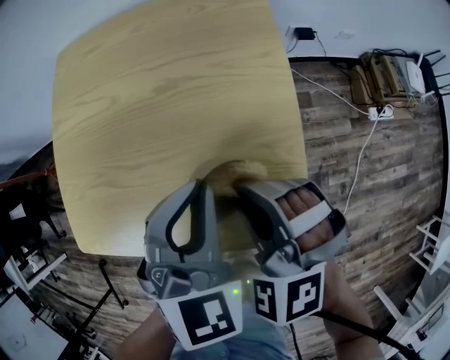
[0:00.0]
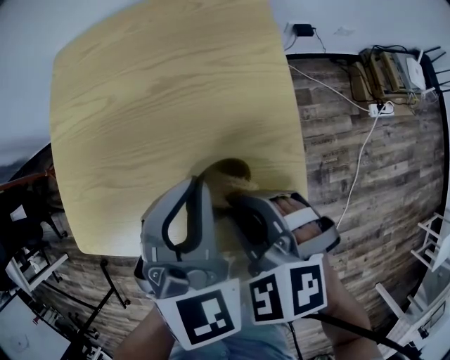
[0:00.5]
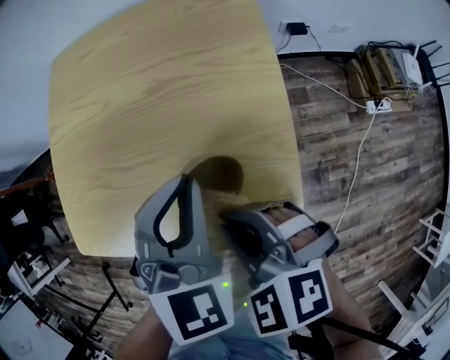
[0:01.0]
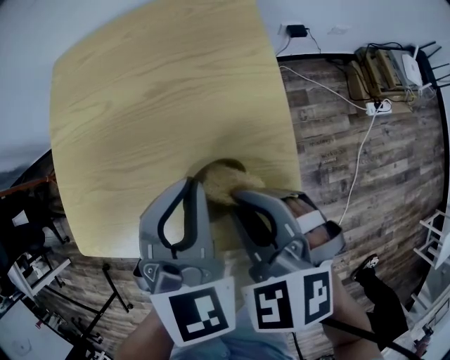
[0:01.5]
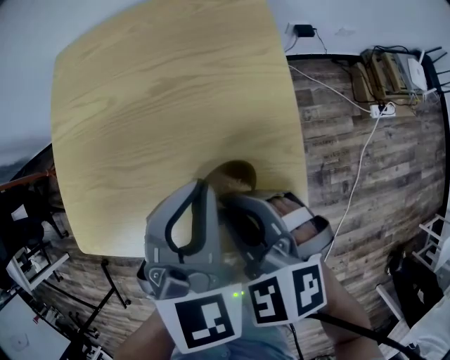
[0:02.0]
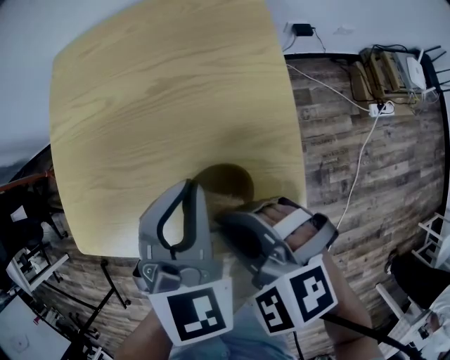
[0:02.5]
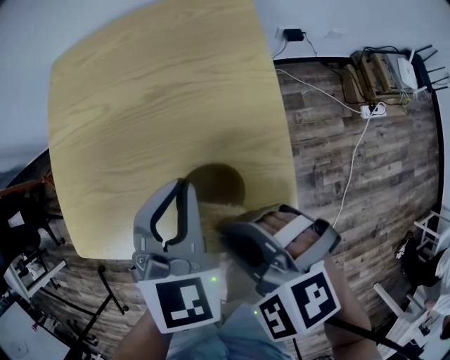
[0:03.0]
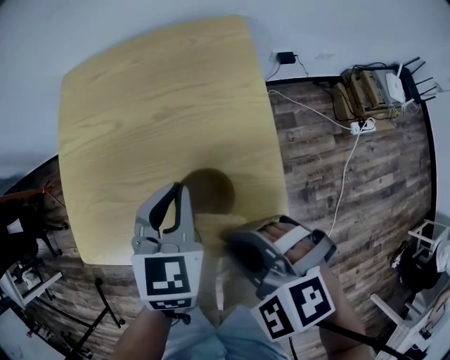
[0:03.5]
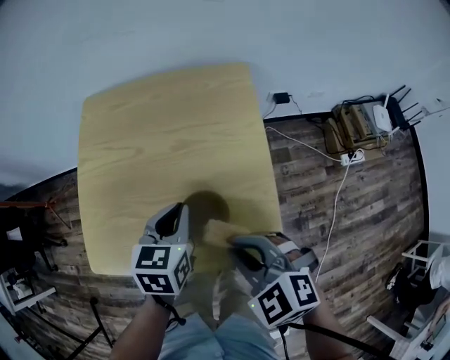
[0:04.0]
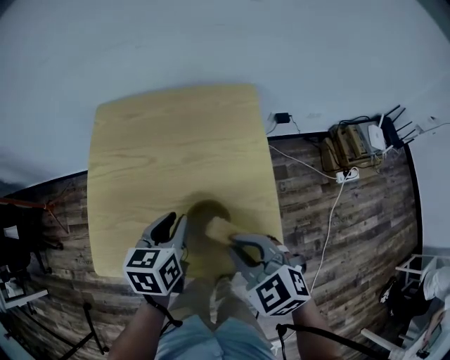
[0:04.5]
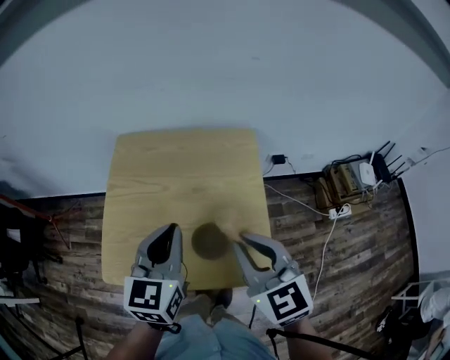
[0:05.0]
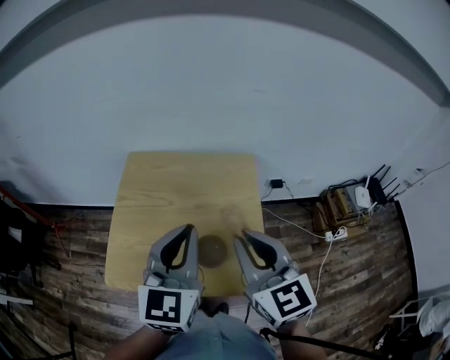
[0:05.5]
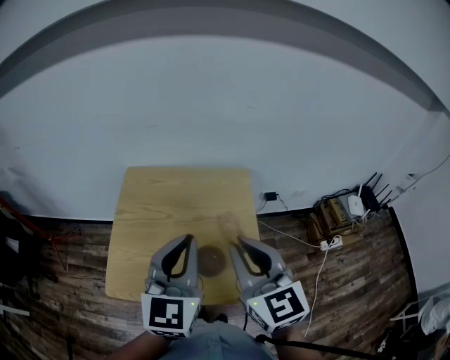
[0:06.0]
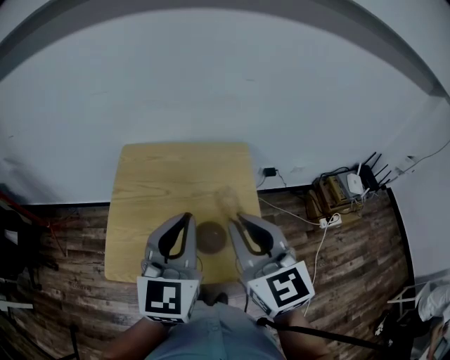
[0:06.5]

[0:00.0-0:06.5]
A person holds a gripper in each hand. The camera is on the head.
0:00.0 to 0:02.0: The right gripper rotates some 20 degrees.
0:02.0 to 0:04.5: The left gripper goes about 10 cm to the left, and twists about 40 degrees counterclockwise, seen from behind, while the right gripper heads upward, covering approximately 5 cm.
0:04.5 to 0:06.5: The grippers both shift upward by some 25 cm. The left gripper points its fingers some 30 degrees further upward, and closes its fingers; the right gripper points its fingers about 30 degrees further upward.

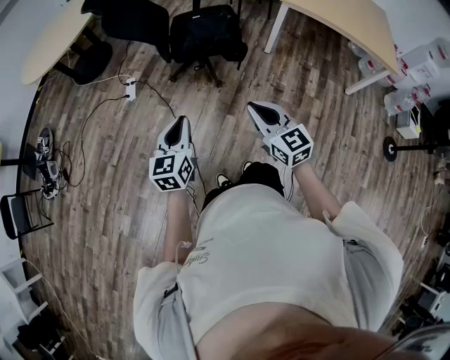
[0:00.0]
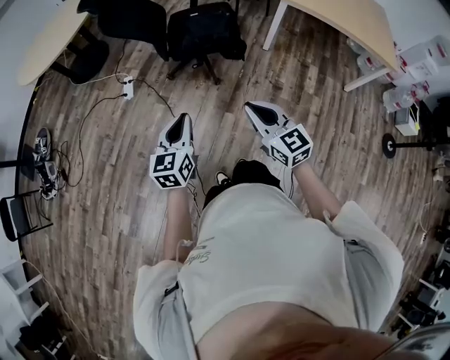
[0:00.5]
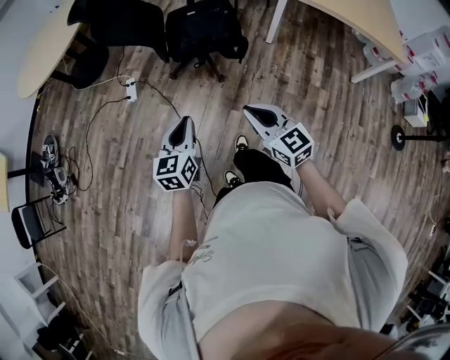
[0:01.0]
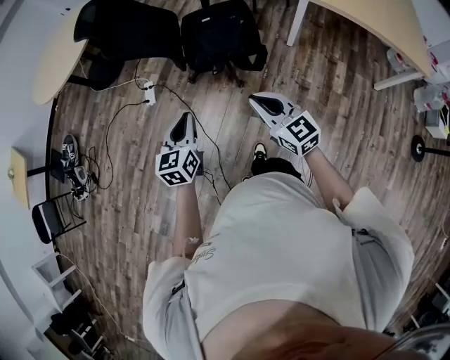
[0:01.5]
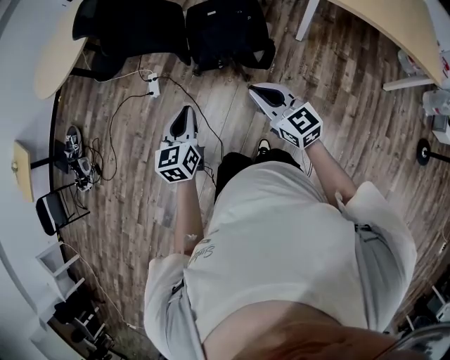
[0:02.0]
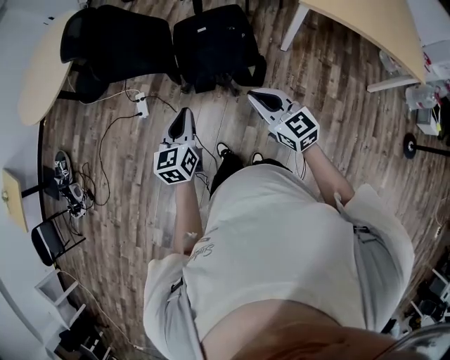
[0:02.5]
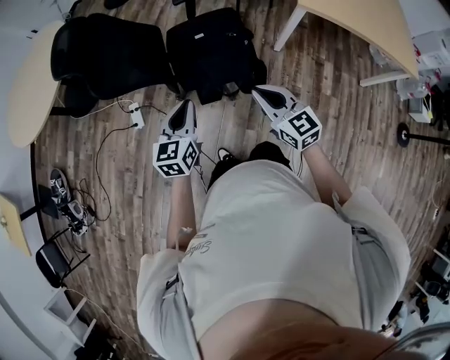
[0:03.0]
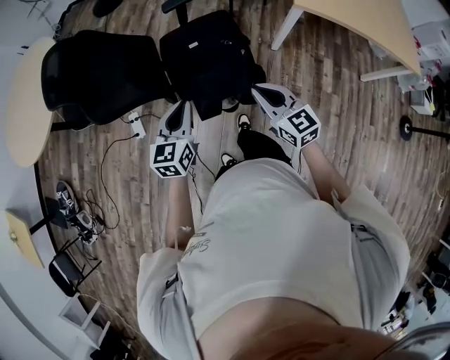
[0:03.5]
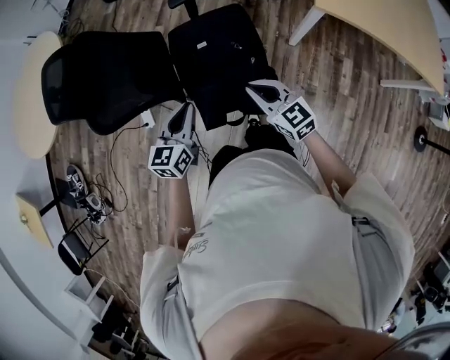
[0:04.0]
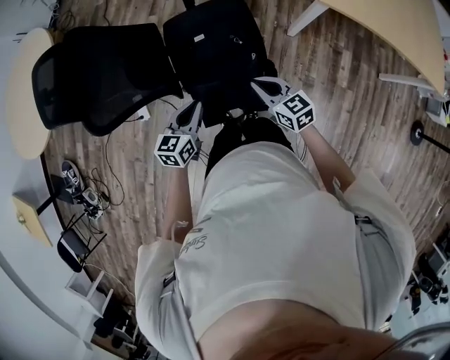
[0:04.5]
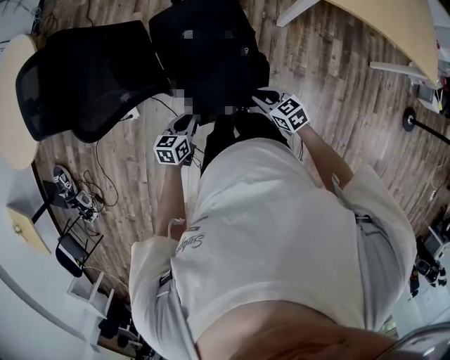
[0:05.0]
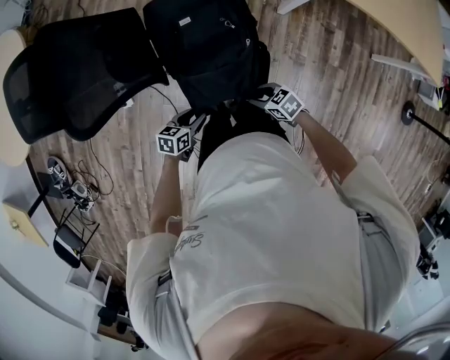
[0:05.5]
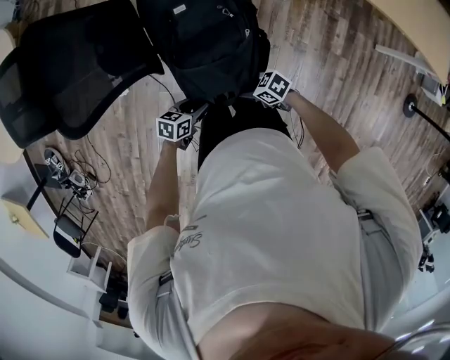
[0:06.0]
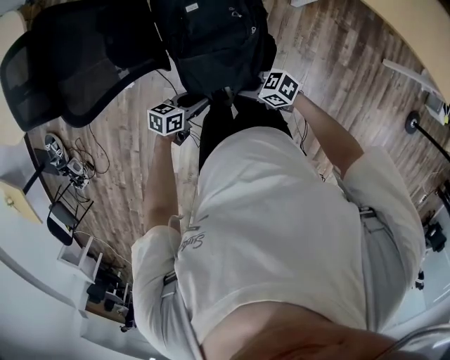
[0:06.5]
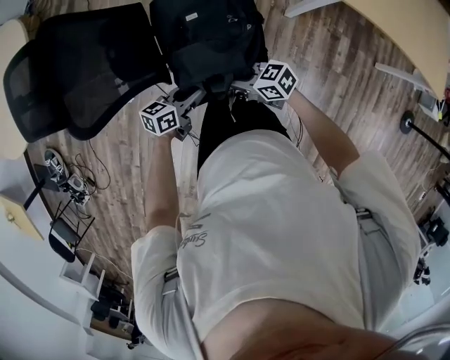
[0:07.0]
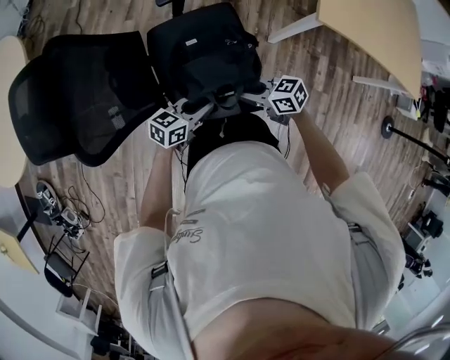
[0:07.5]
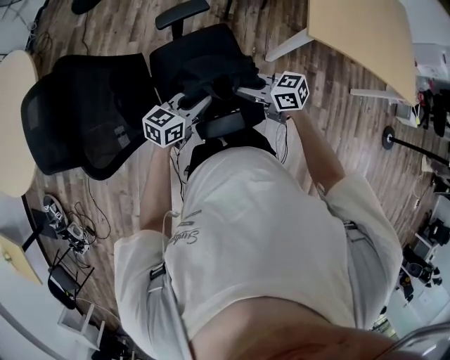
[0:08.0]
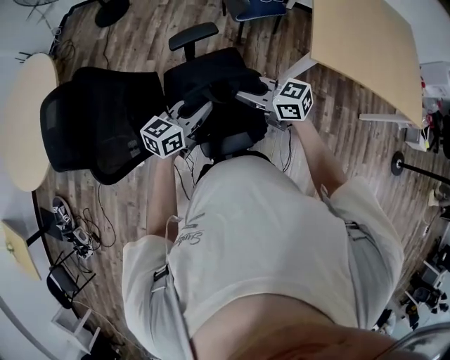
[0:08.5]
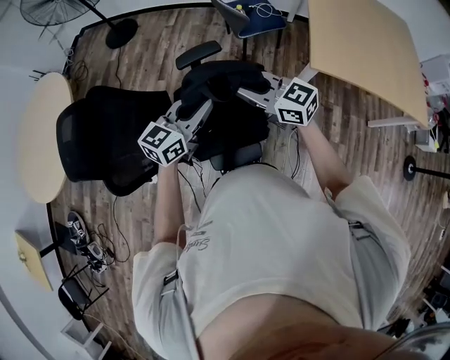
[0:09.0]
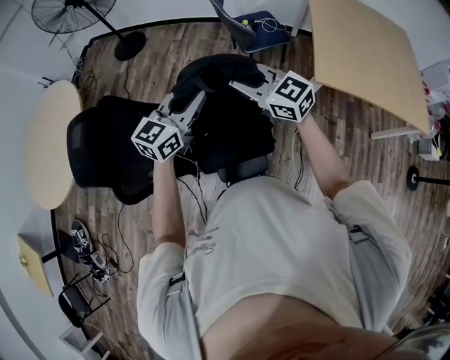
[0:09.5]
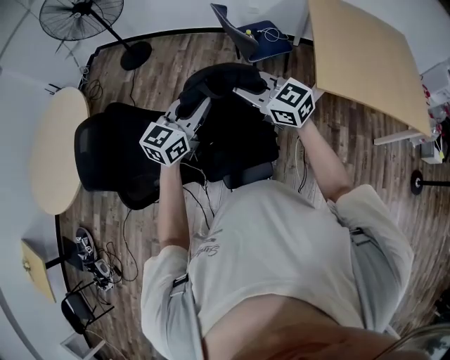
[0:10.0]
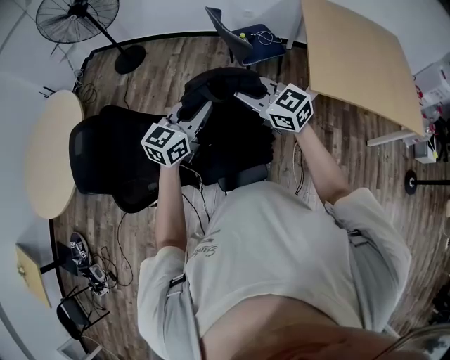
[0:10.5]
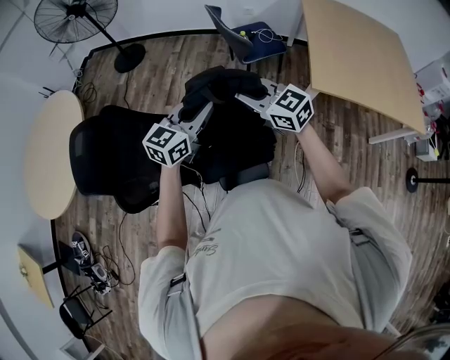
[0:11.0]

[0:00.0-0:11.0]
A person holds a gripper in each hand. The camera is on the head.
0:00.0 to 0:02.0: Both grippers travel together forward, some 25 cm.
0:02.0 to 0:03.5: Both grippers move forward, about 25 cm.
0:03.5 to 0:05.5: Both grippers move downward, about 30 cm. The right gripper points its fingers approximately 30 degrees further downward, and opens. Meanwhile the left gripper swivels roughly 50 degrees, and opens.
0:05.5 to 0:07.5: The left gripper ends up roughly 20 cm from where it was, swivels about 30 degrees, and closes. The right gripper changes place by approximately 20 cm, changes its angle by roughly 20 degrees, and closes.
0:07.5 to 0:09.0: Both grippers move upward, about 25 cm. The left gripper turns by some 30 degrees, while the right gripper rotates some 40 degrees.
0:09.0 to 0:11.0: The left gripper ends up approximately 5 cm from where it was.

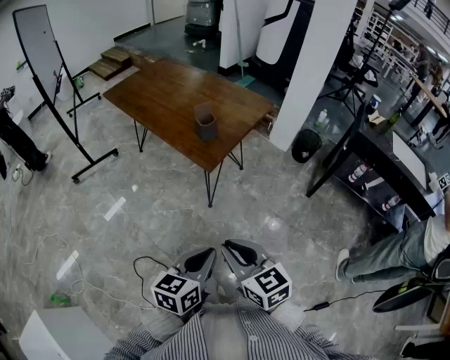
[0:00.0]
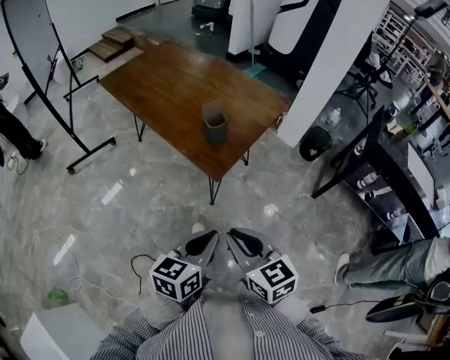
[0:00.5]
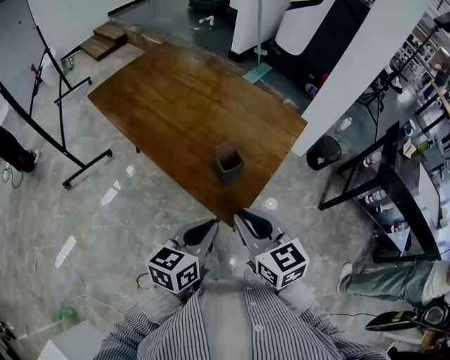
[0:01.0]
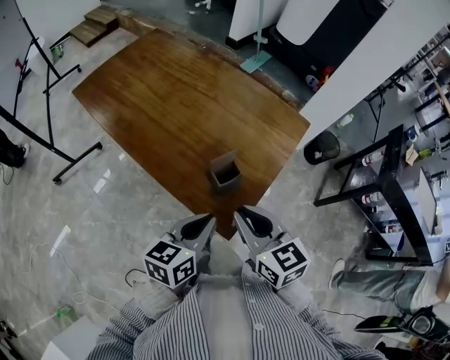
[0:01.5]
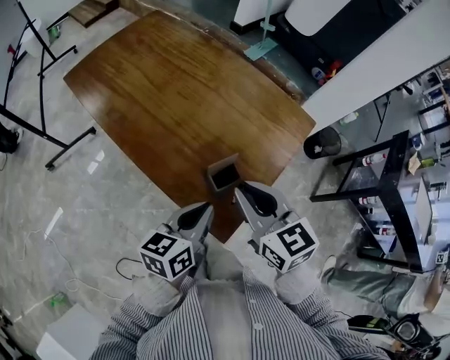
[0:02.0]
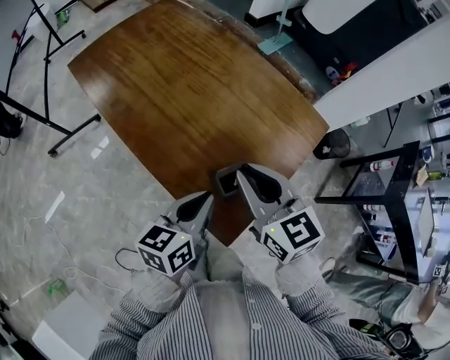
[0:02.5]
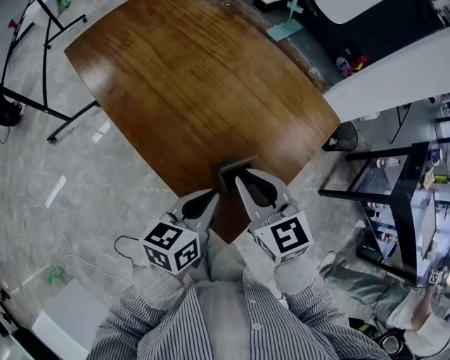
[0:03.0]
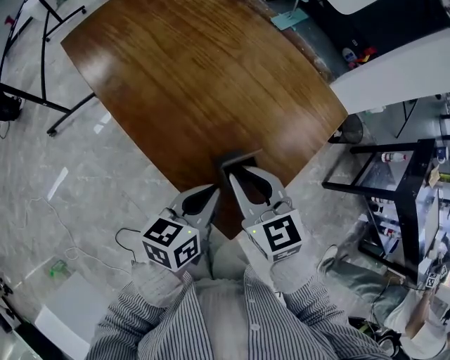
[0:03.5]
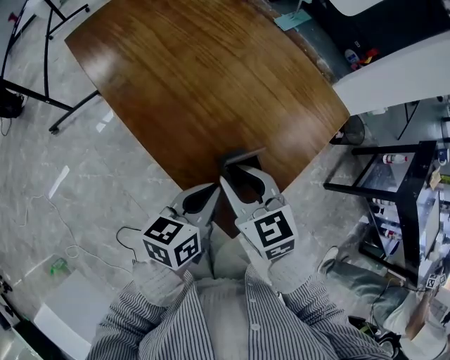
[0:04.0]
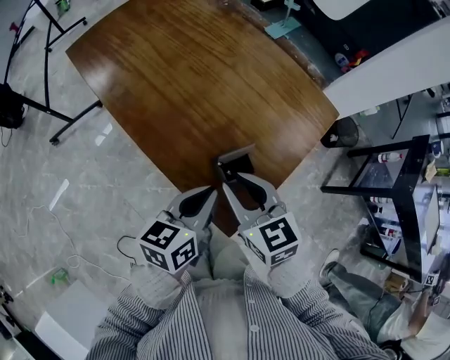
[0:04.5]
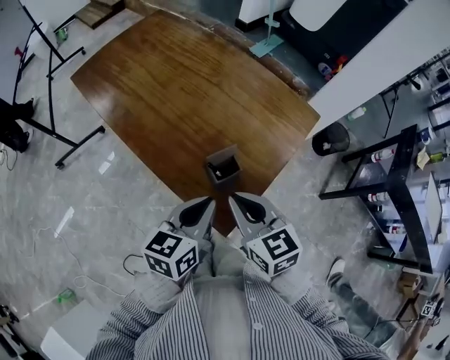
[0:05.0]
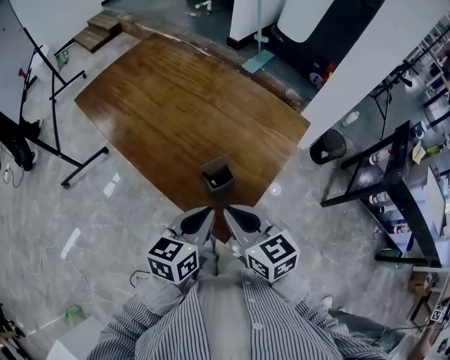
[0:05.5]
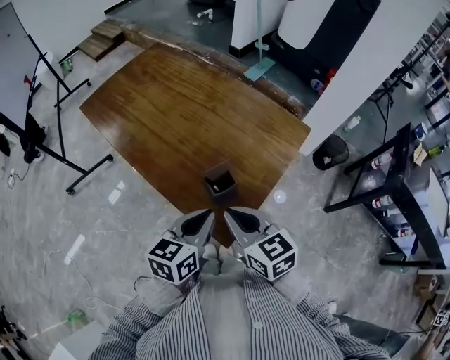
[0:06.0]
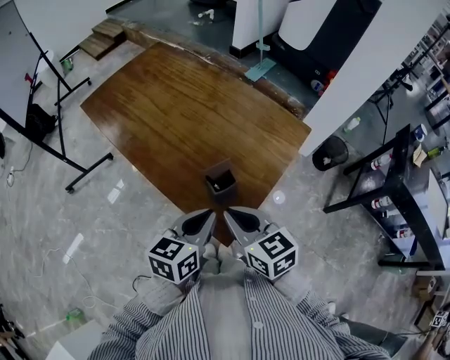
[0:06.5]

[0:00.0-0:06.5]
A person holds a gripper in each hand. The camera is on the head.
0:00.0 to 0:02.0: The pair of grippers is taken forward, about 50 cm.
0:02.0 to 0:04.5: The right gripper is displaced downward by approximately 10 cm.
0:04.5 to 0:06.5: The left gripper ends up roughly 5 cm from where it was. Meanwhile the right gripper shifts roughly 5 cm backward, and closes its fingers.

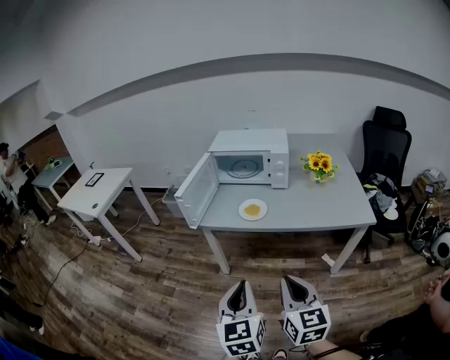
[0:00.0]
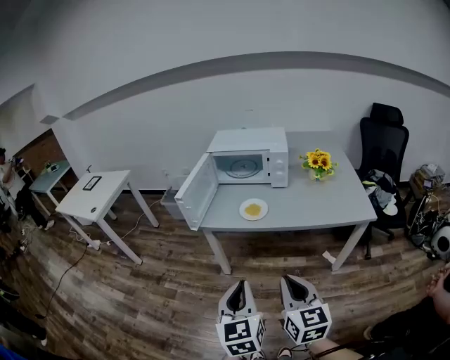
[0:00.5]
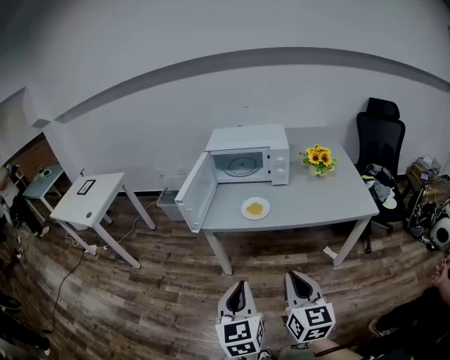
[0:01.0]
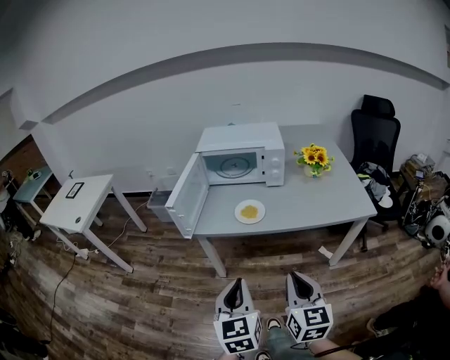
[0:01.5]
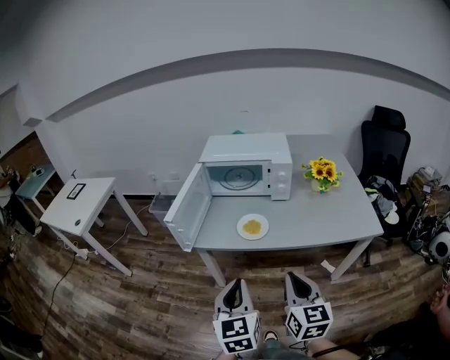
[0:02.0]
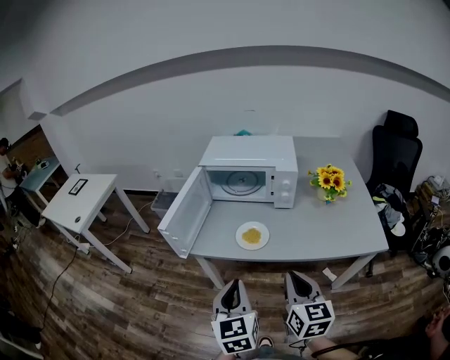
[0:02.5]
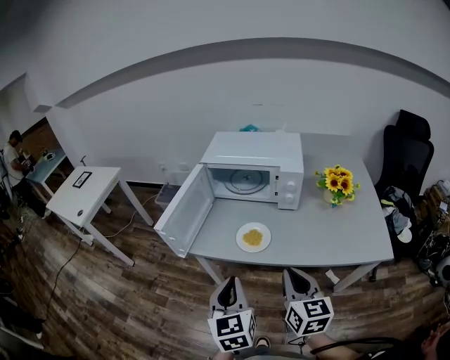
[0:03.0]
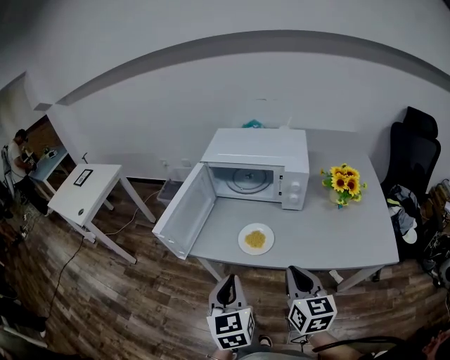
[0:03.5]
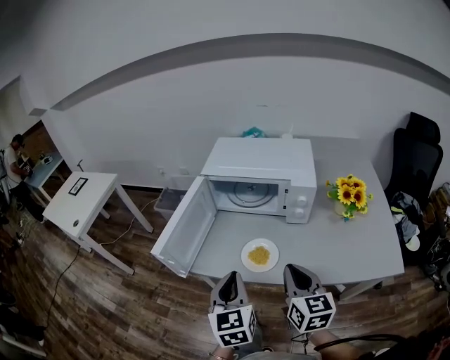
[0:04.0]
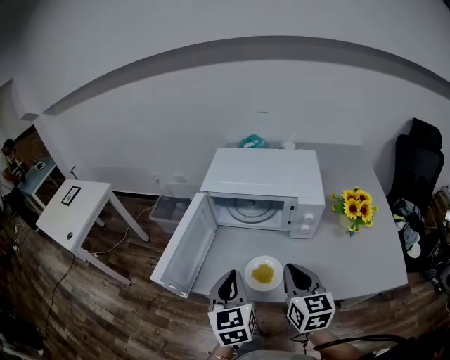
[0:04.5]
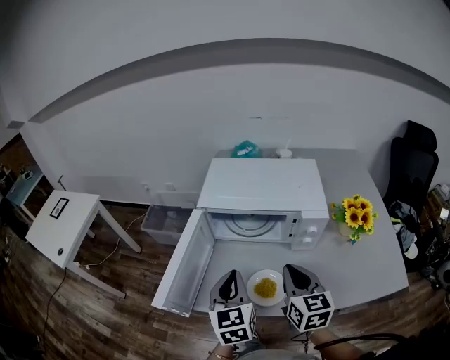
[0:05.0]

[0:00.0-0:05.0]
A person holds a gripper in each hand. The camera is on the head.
0:00.0 to 0:02.5: The two grippers go roughly 20 cm forward.
0:02.5 to 0:05.0: The two grippers go about 30 cm forward.
